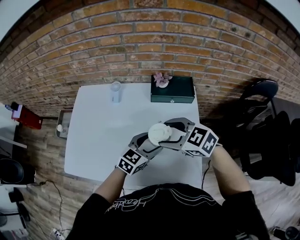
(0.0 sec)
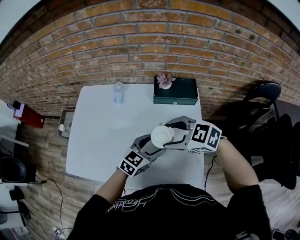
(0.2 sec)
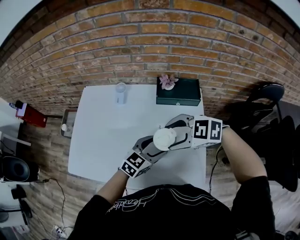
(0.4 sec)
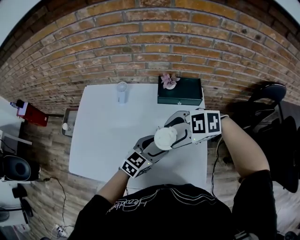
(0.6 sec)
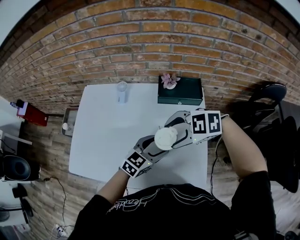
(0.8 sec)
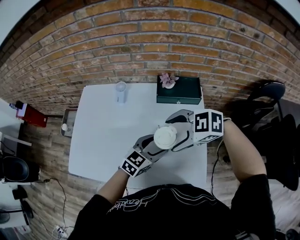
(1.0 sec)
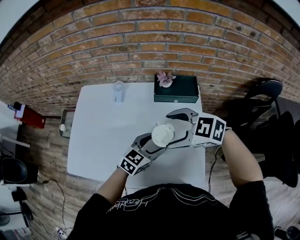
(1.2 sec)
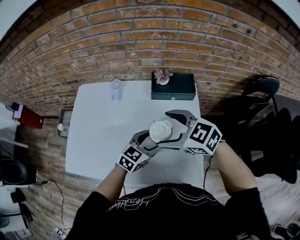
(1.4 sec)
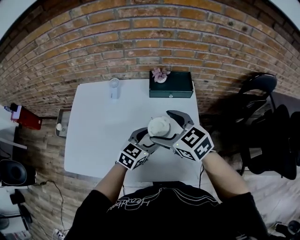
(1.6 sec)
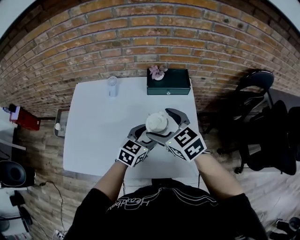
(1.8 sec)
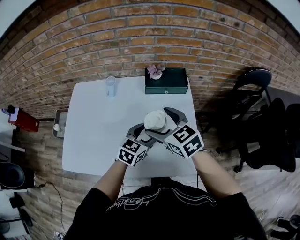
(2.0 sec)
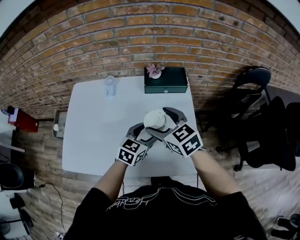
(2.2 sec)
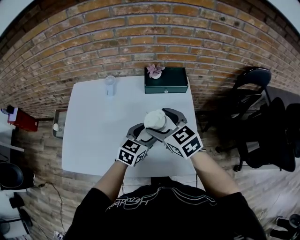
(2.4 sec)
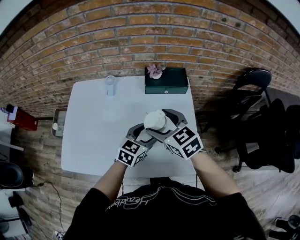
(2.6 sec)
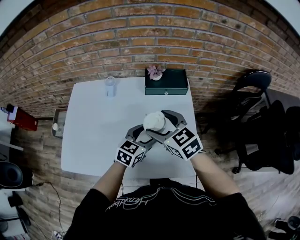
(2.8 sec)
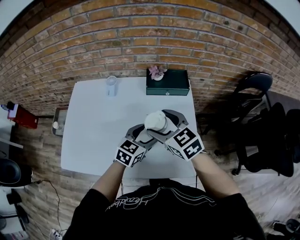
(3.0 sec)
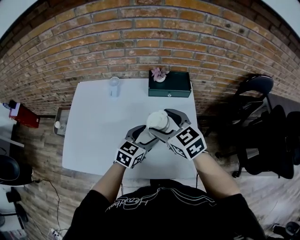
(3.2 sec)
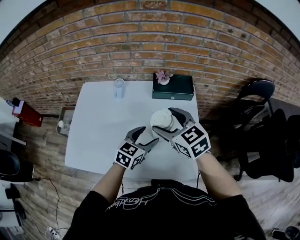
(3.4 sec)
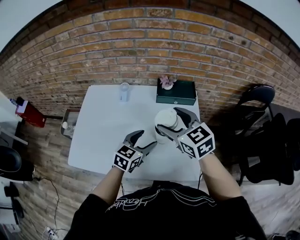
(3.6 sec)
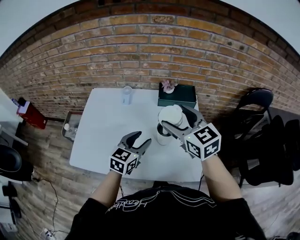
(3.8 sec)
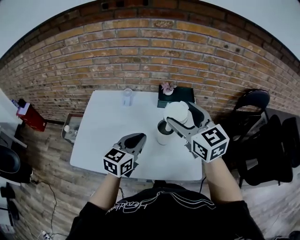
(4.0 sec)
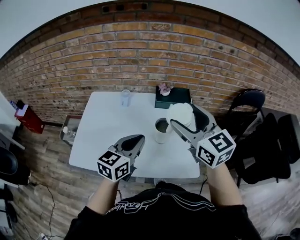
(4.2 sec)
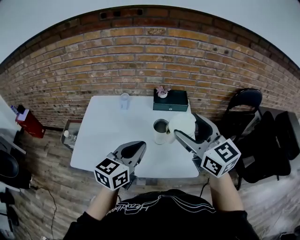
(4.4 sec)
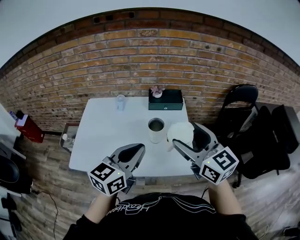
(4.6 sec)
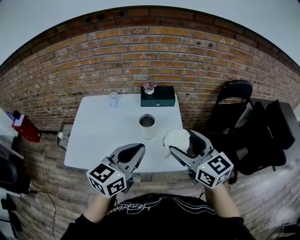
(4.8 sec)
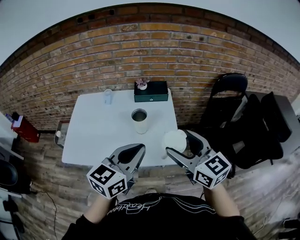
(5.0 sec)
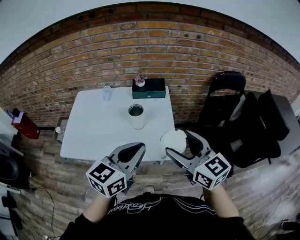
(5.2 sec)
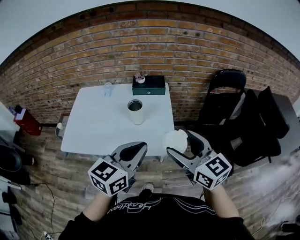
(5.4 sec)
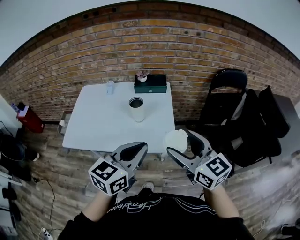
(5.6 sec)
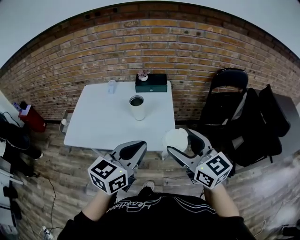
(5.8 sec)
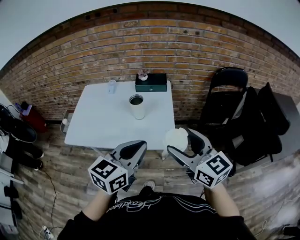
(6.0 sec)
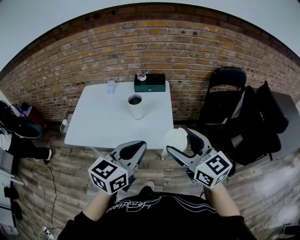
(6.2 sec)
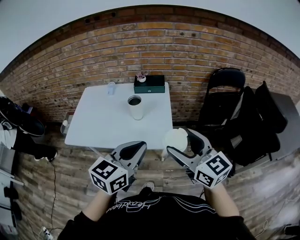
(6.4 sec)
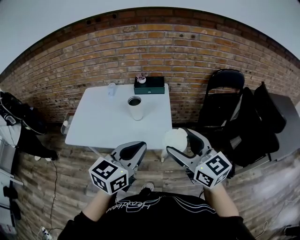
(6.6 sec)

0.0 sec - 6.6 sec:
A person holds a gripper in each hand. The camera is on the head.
1.6 sec - 3.2 sec: The grippers make only small movements.
3.2 sec - 5.0 sec: The left gripper goes some 30 cm upward and backward, and closes up; the right gripper travels backward, to the right and upward by about 30 cm, and rotates roughly 20 degrees.
5.0 sec - 6.6 sec: The two grippers go some 15 cm backward and to the right.

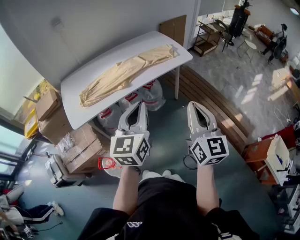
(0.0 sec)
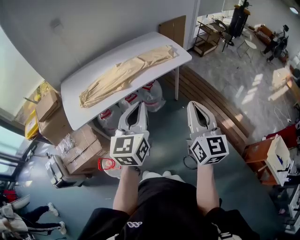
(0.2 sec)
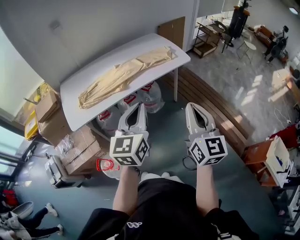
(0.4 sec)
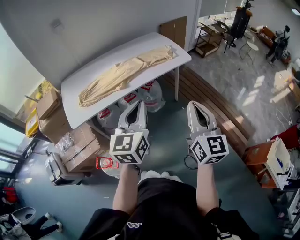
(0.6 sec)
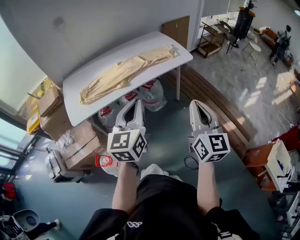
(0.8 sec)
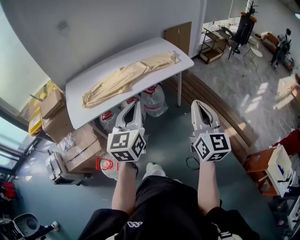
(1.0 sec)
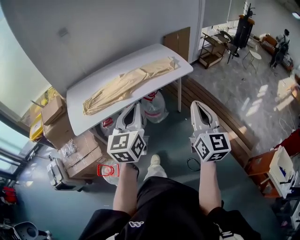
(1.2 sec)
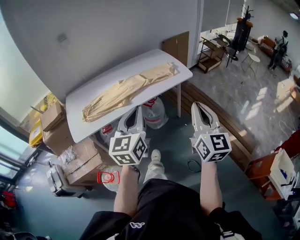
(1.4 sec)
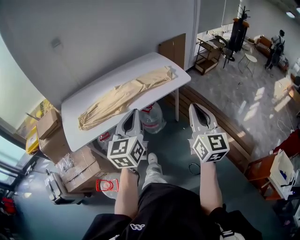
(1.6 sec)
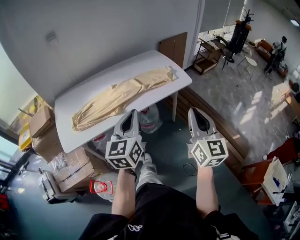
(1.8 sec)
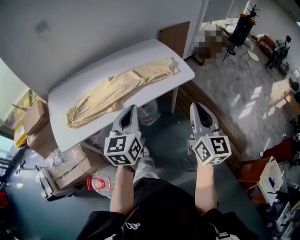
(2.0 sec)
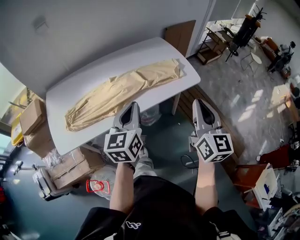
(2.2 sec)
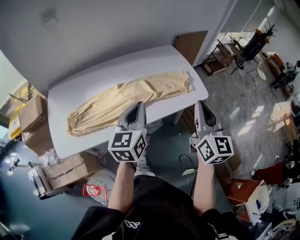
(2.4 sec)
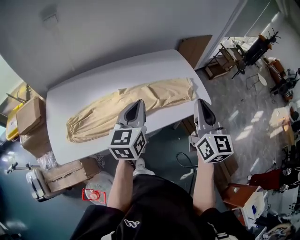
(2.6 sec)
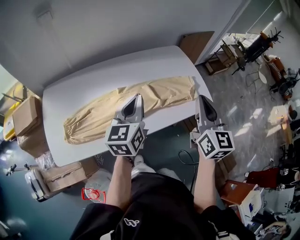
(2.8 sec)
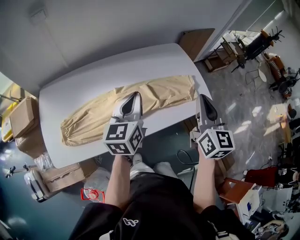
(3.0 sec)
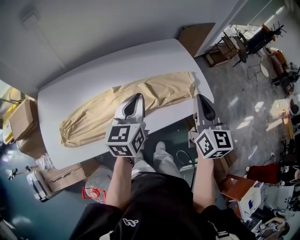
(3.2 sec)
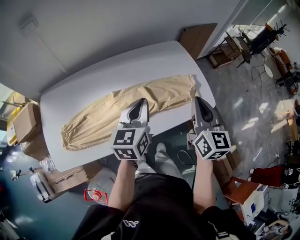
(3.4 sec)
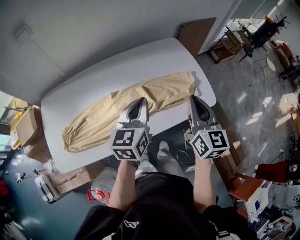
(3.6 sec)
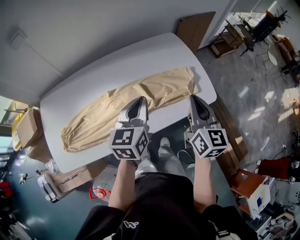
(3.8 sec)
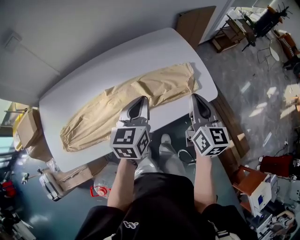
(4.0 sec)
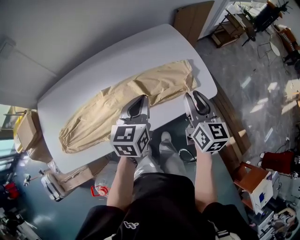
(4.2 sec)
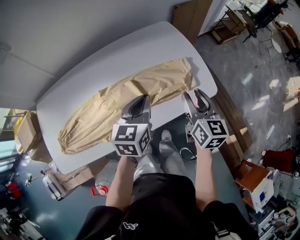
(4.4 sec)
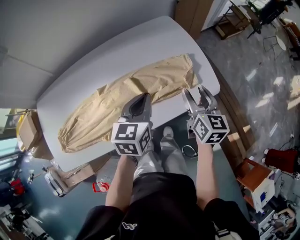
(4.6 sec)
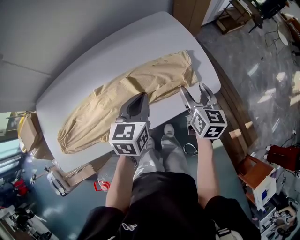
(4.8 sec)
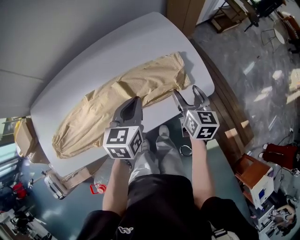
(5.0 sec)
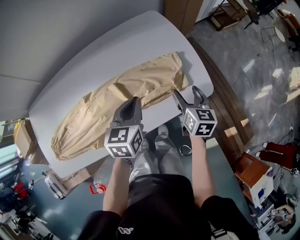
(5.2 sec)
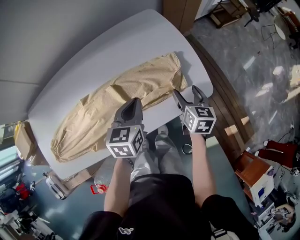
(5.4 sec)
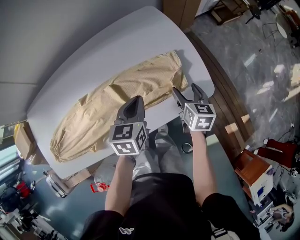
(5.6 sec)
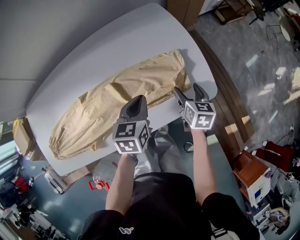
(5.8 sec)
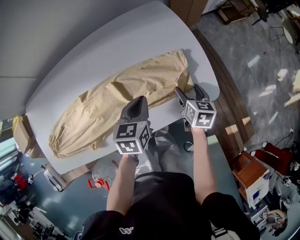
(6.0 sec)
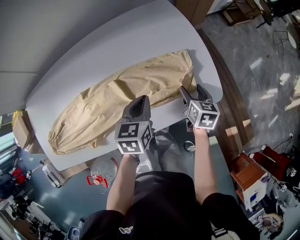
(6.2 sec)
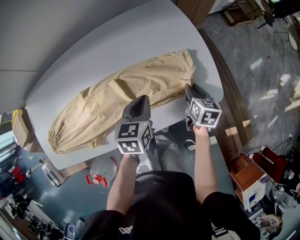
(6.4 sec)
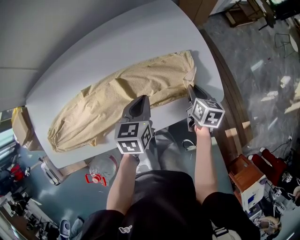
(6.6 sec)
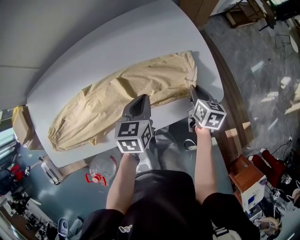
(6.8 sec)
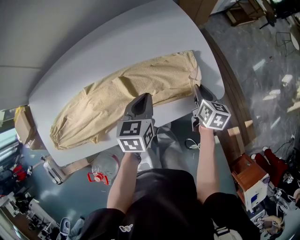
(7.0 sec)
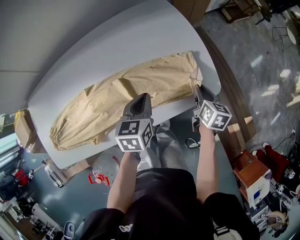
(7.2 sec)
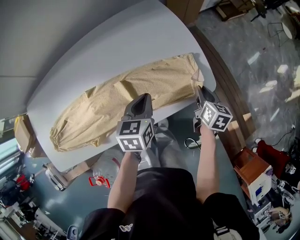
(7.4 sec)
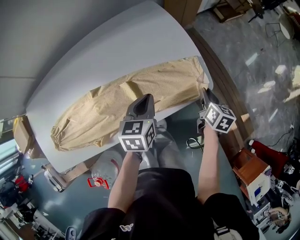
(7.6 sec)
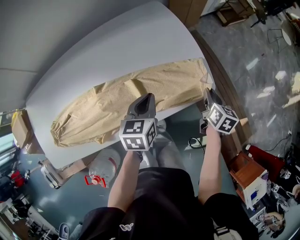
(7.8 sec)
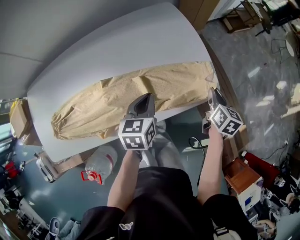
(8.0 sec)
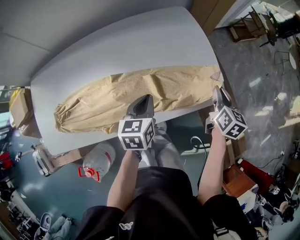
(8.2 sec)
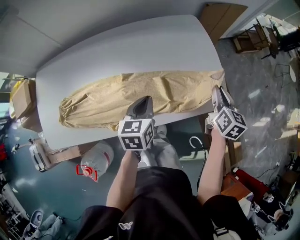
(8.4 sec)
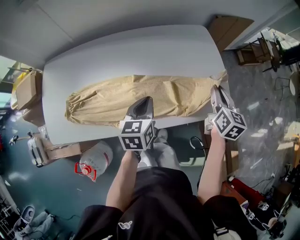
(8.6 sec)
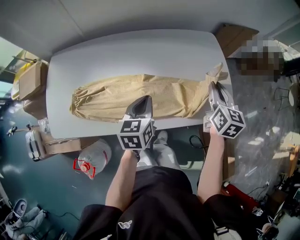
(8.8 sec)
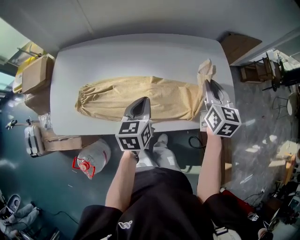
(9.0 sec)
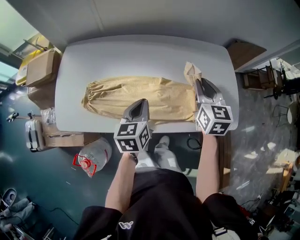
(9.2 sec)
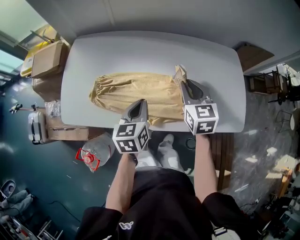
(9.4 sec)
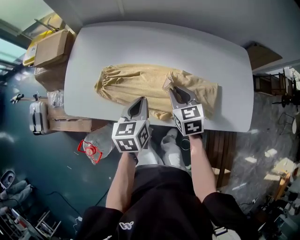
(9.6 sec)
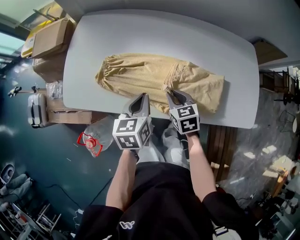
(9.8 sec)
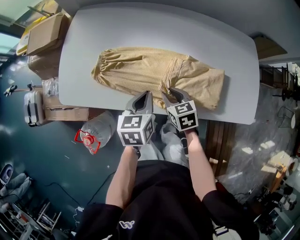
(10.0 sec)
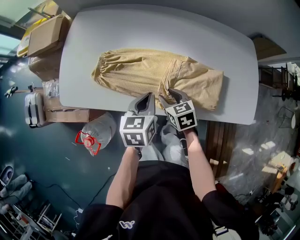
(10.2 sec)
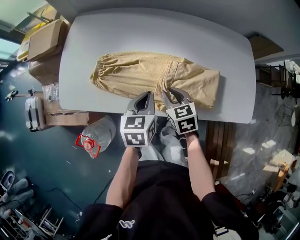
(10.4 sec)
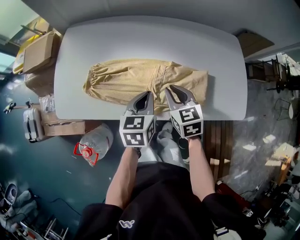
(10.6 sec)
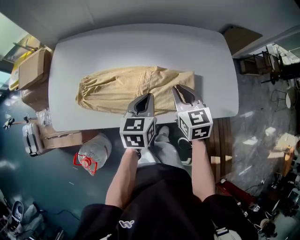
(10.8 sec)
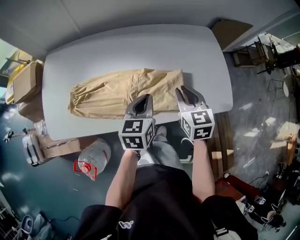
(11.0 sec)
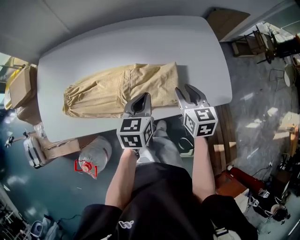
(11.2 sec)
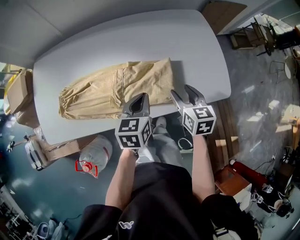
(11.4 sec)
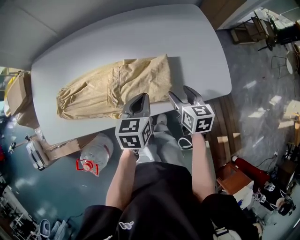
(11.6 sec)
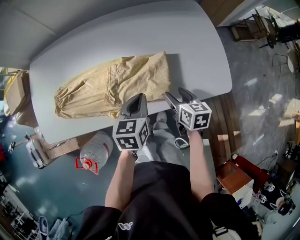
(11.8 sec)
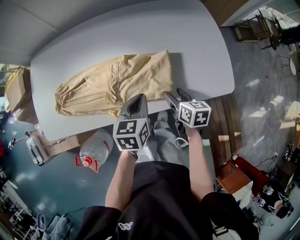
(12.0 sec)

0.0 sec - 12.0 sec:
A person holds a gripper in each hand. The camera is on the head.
0.0 sec - 1.6 sec: The left gripper travels forward by some 10 cm. Meanwhile the right gripper is displaced forward and to the right by approximately 10 cm.
1.6 sec - 3.0 sec: The two grippers go approximately 40 cm forward.
3.0 sec - 4.4 sec: The left gripper heads to the right, downward and forward, covering some 20 cm. The right gripper moves downward, to the right and forward, roughly 20 cm, and opens up.
4.4 sec - 6.0 sec: The left gripper travels downward and forward by about 15 cm. Meanwhile the right gripper goes roughly 25 cm downward and forward, rotates about 30 degrees, and opens.
6.0 sec - 7.6 sec: The right gripper heads to the right, covering some 10 cm, and closes its fingers. The left gripper is displaced to the right by about 5 cm.
7.6 sec - 9.0 sec: The right gripper shifts about 40 cm to the left and upward, and rotates about 40 degrees. The left gripper moves to the left, approximately 25 cm, and swivels approximately 30 degrees.
9.0 sec - 10.4 sec: The left gripper heads to the left and downward, covering about 15 cm. The right gripper shifts some 35 cm to the left and downward, and rotates approximately 40 degrees.
10.4 sec - 12.0 sec: The grippers both shift to the right by roughly 20 cm. The right gripper twists about 40 degrees clockwise, seen from behind, and opens up.

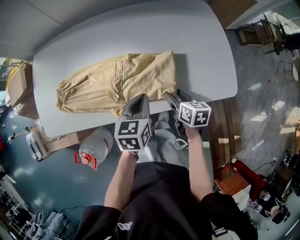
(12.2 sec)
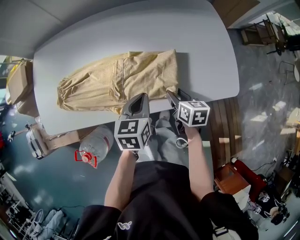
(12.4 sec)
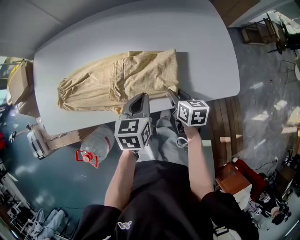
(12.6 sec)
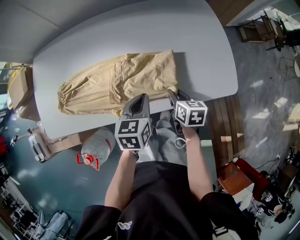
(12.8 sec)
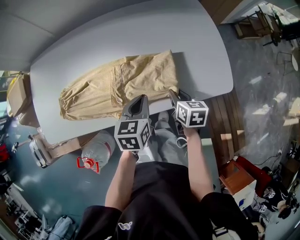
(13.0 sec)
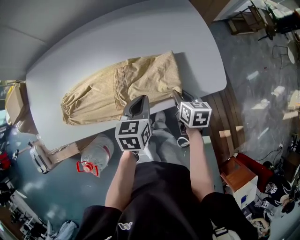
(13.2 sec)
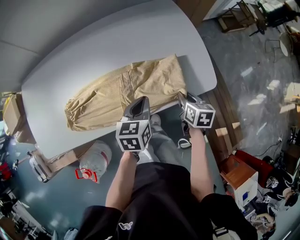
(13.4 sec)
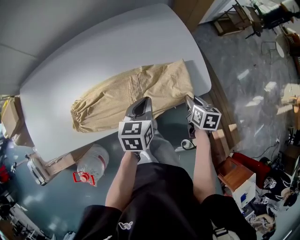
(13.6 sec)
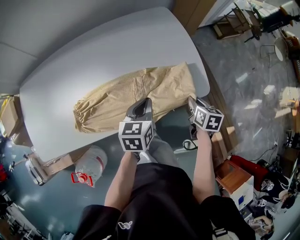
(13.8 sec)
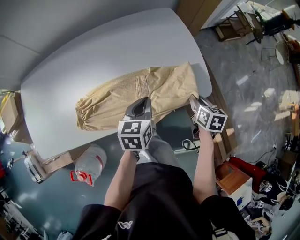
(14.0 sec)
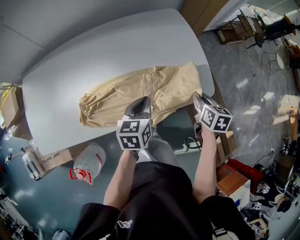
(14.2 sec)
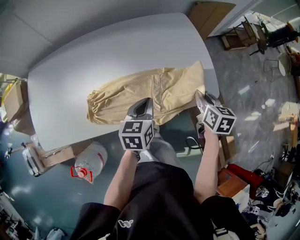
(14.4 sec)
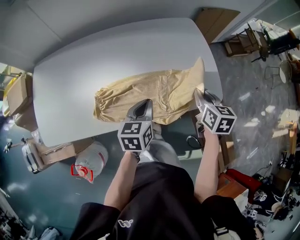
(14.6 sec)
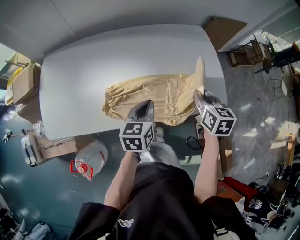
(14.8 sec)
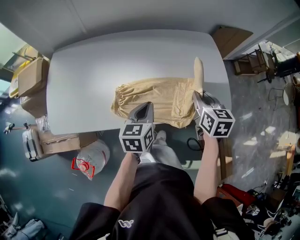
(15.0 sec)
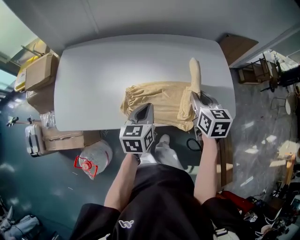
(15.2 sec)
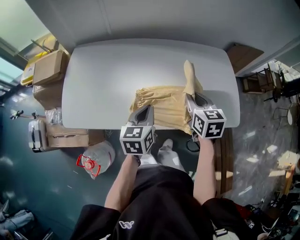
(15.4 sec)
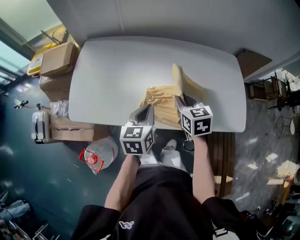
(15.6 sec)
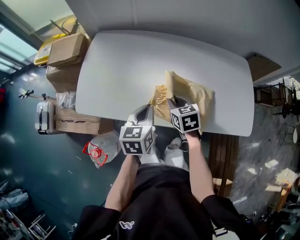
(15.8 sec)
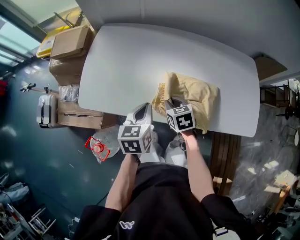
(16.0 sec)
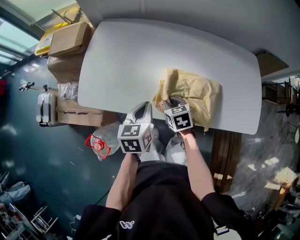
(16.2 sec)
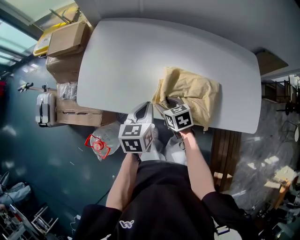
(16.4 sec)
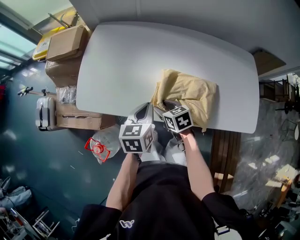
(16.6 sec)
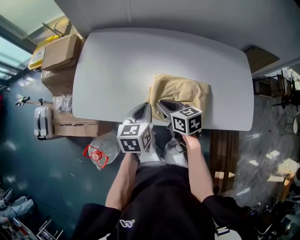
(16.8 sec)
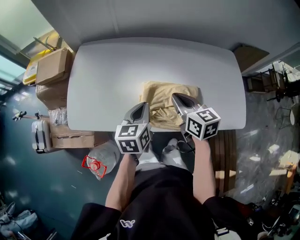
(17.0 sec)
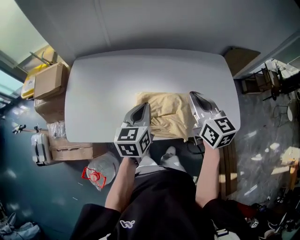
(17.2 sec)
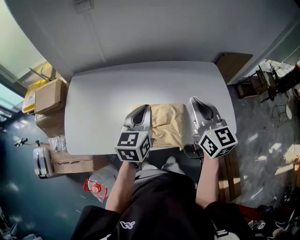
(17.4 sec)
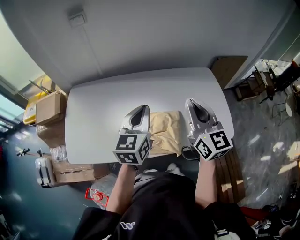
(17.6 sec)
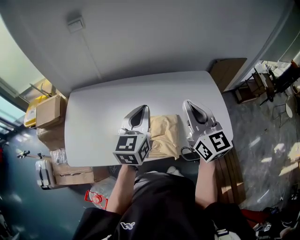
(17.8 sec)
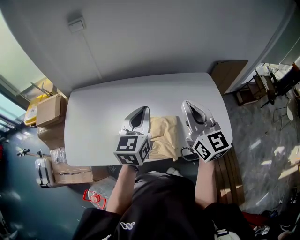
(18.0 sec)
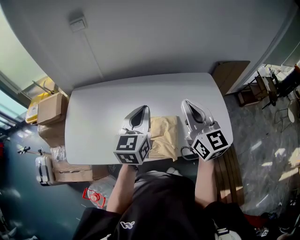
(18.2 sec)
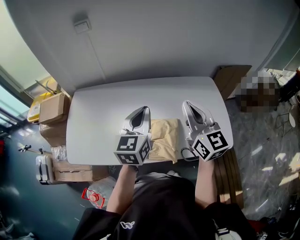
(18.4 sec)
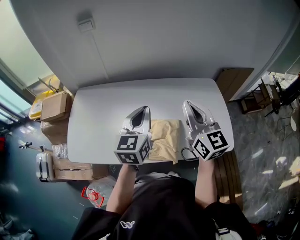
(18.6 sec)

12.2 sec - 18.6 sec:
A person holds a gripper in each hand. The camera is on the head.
12.2 sec - 13.8 sec: The left gripper goes about 15 cm to the right, while the right gripper moves to the right, some 25 cm, rotates roughly 20 degrees, and closes its fingers.
13.8 sec - 15.4 sec: The right gripper is displaced to the left and upward by approximately 40 cm, and swivels about 40 degrees. Meanwhile the left gripper shifts roughly 30 cm to the left, and rotates approximately 20 degrees.
15.4 sec - 17.0 sec: The right gripper goes downward and returns, roughly 20 cm each way, and opens, then closes again.
17.0 sec - 18.6 sec: Both grippers move upward and to the right, about 20 cm. The right gripper swivels approximately 30 degrees; the left gripper turns by about 20 degrees.
